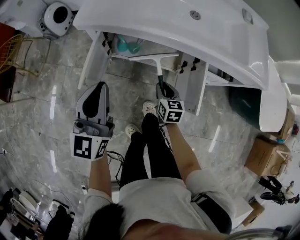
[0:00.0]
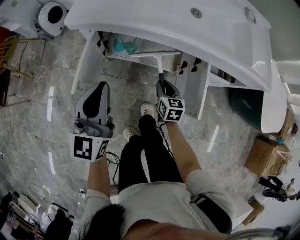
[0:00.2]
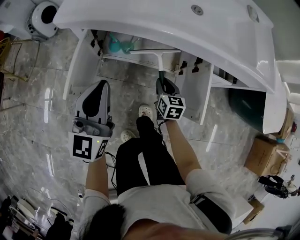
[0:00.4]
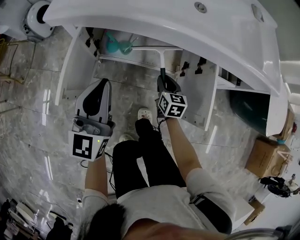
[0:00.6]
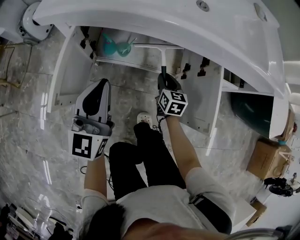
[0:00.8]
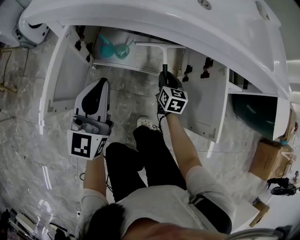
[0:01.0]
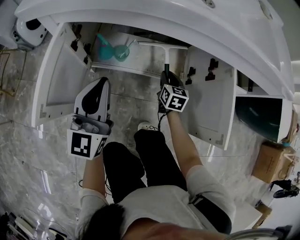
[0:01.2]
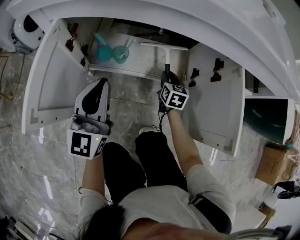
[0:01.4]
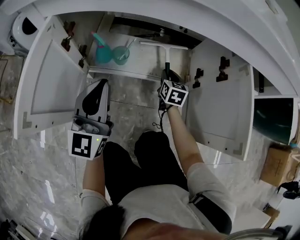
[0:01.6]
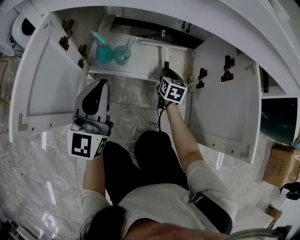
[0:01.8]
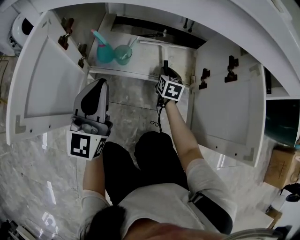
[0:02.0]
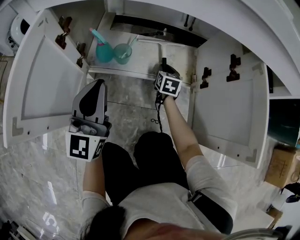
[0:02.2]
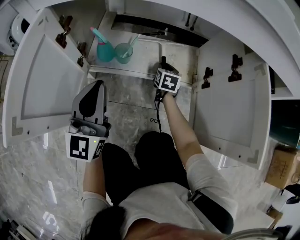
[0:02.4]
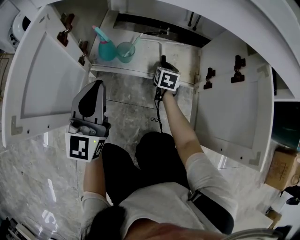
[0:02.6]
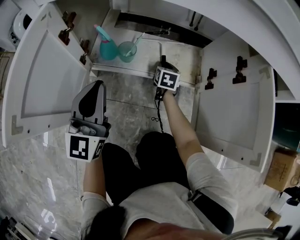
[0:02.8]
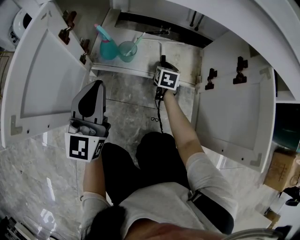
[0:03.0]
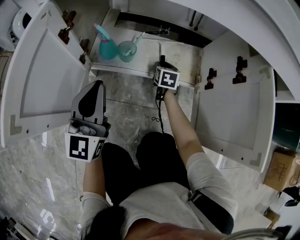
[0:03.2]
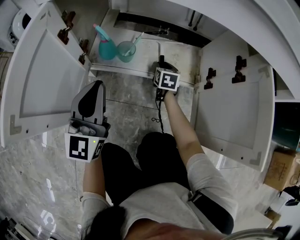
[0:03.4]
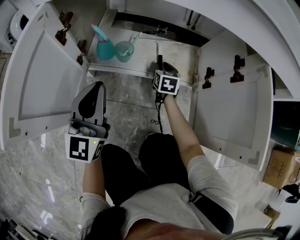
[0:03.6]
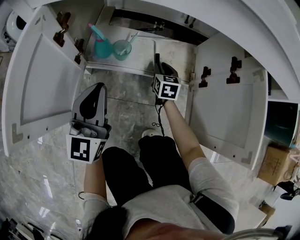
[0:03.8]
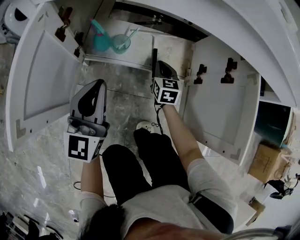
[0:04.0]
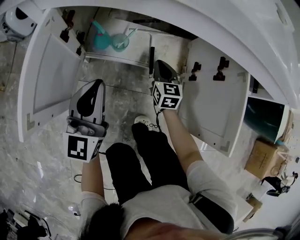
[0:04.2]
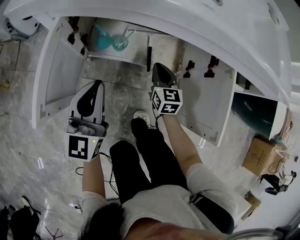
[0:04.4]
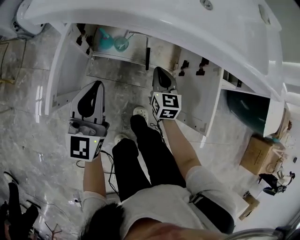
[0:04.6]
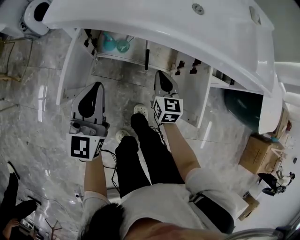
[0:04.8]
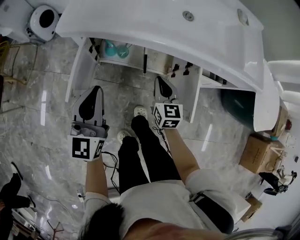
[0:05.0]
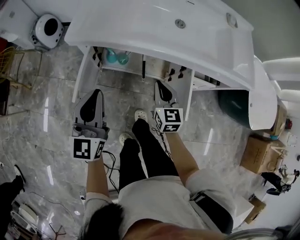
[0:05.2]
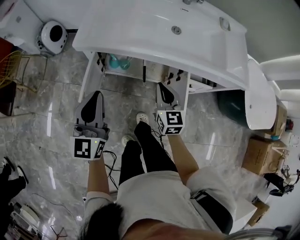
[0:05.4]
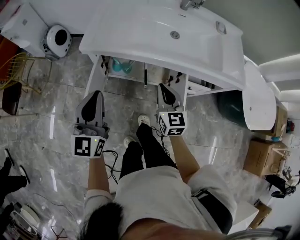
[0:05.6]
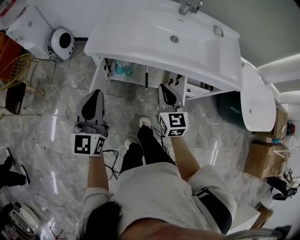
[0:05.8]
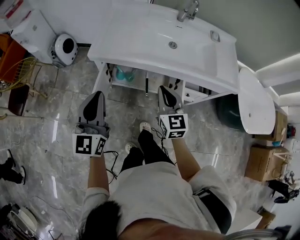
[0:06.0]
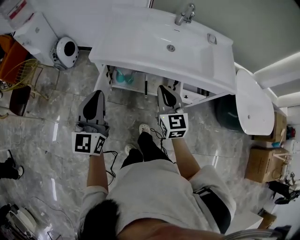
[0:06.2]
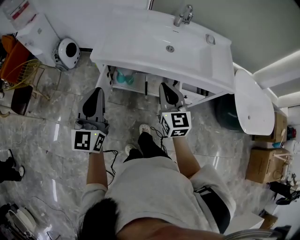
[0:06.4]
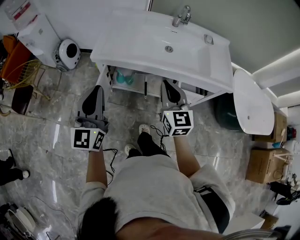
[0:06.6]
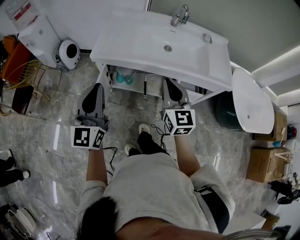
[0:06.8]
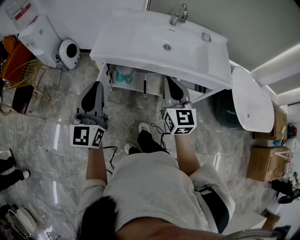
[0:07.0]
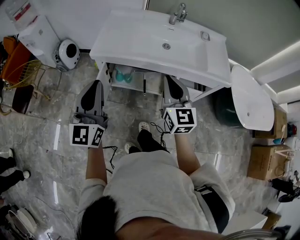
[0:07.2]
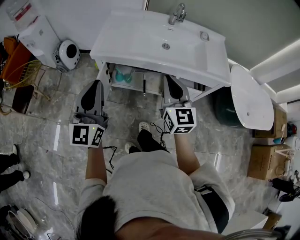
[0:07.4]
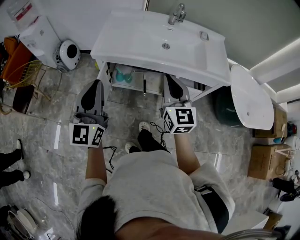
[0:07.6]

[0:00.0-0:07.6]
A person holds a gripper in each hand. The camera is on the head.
0:00.0 to 0:01.6: The left gripper travels downward by roughly 35 cm, while the right gripper is displaced downward and forward by some 35 cm.
0:01.6 to 0:03.0: The right gripper is displaced downward and to the left by some 10 cm, while the left gripper is displaced downward by approximately 5 cm.
0:03.0 to 0:04.6: The right gripper moves upward and backward, approximately 30 cm, changes its angle by roughly 20 degrees, and closes up; the left gripper shifts some 20 cm upward.
0:04.6 to 0:06.0: The grippers both shift upward by approximately 40 cm.
0:06.0 to 0:07.6: The two grippers go about 15 cm upward and backward.

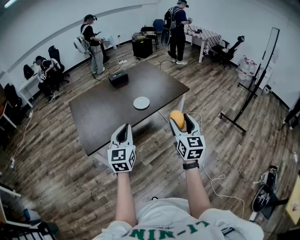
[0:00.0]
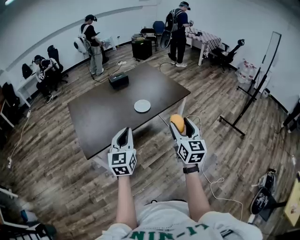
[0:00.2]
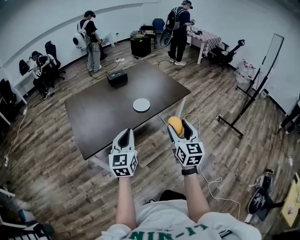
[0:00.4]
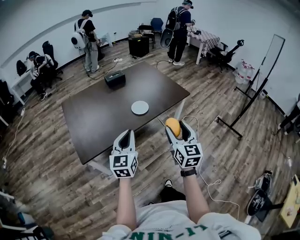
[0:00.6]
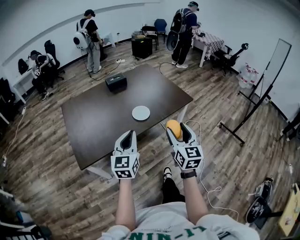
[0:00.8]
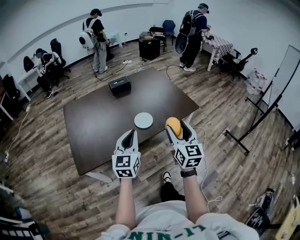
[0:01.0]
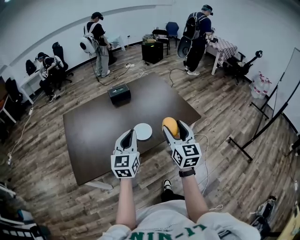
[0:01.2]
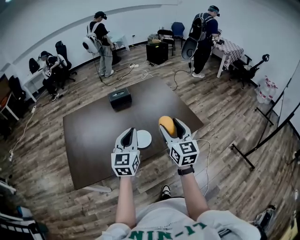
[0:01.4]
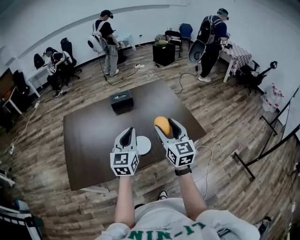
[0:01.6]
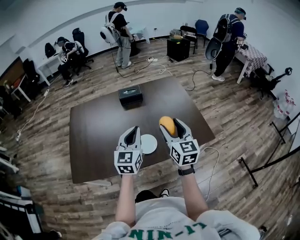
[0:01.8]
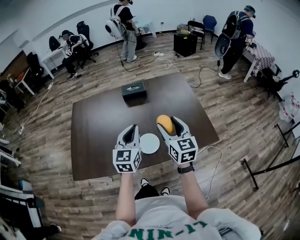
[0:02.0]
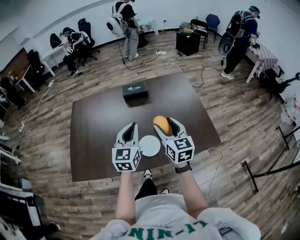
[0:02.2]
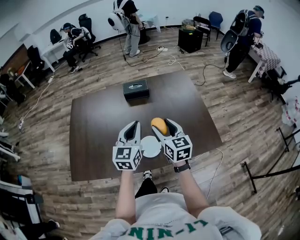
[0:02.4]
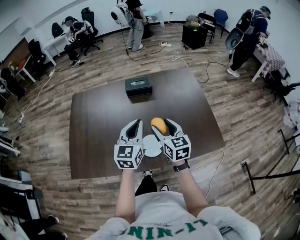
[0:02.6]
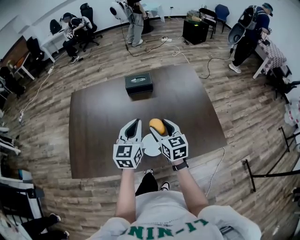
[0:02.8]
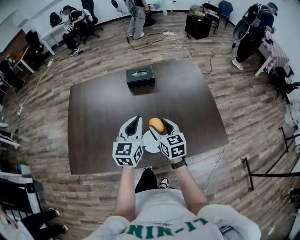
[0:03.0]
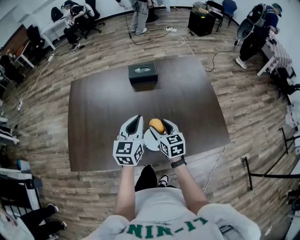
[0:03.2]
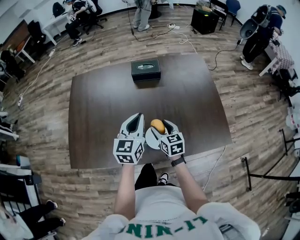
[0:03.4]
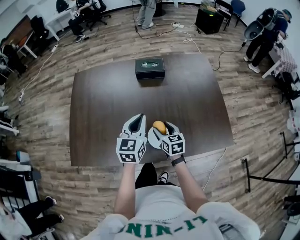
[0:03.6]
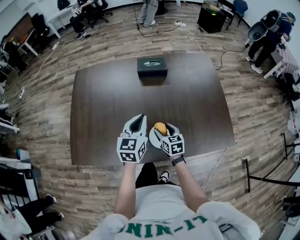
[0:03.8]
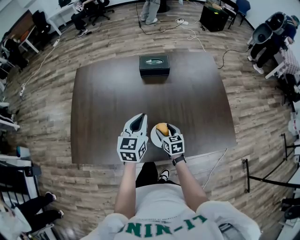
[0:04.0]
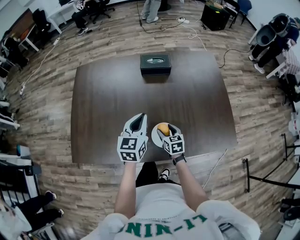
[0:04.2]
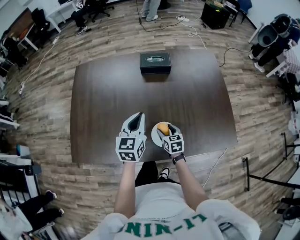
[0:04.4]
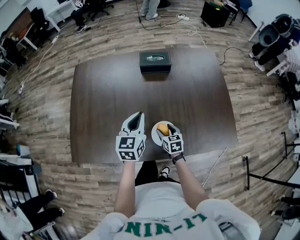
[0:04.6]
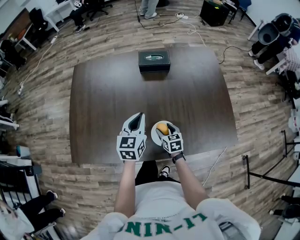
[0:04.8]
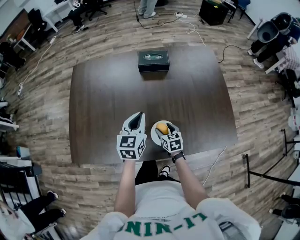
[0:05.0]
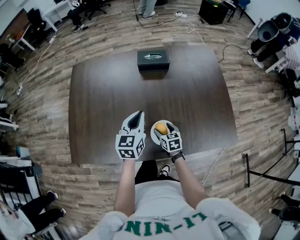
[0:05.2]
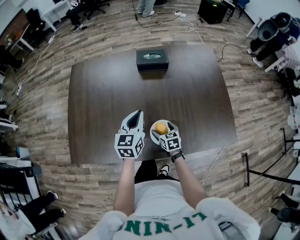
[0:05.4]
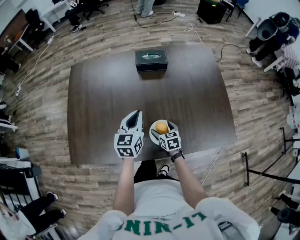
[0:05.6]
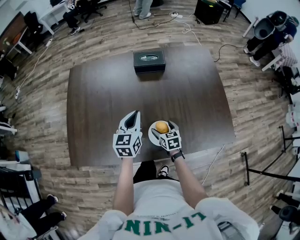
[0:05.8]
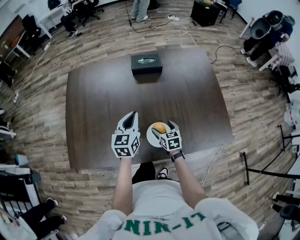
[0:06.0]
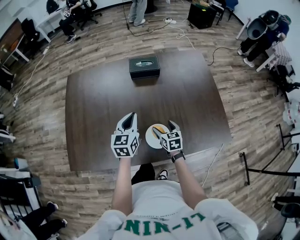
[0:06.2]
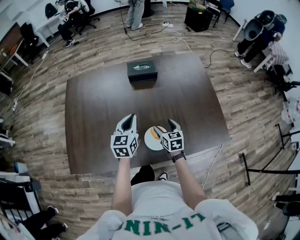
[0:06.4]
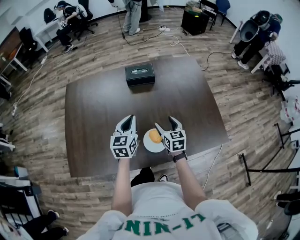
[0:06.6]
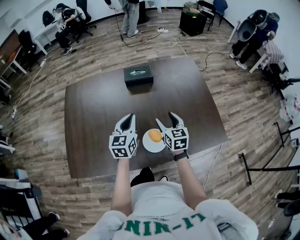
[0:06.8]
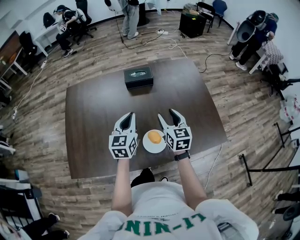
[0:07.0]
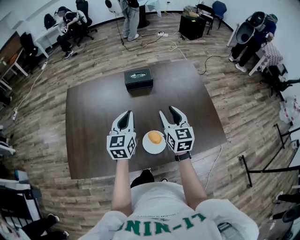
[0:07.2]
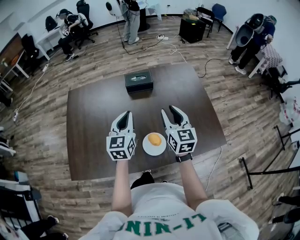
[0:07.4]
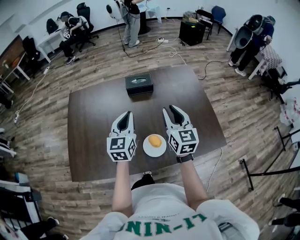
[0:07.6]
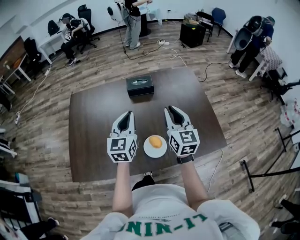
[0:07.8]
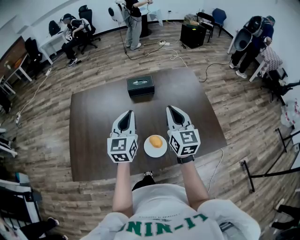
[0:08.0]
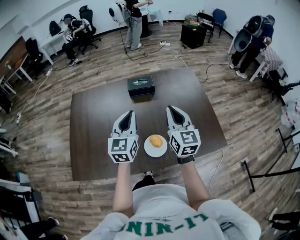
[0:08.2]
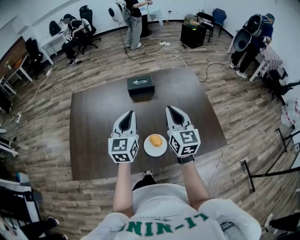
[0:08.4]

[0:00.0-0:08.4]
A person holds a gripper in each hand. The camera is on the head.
0:00.0 to 0:01.4: The pair of grippers is taken forward, some 40 cm.
0:01.4 to 0:02.8: The right gripper shifts about 30 cm forward and downward, and swivels roughly 30 degrees, while the left gripper travels forward by some 20 cm.
0:02.8 to 0:04.2: The left gripper travels downward and to the left by some 10 cm. The right gripper is displaced downward by about 25 cm, and rotates approximately 20 degrees.
0:04.2 to 0:05.6: The right gripper opens.
0:05.6 to 0:07.0: The right gripper moves upward, approximately 25 cm, changes its angle by approximately 30 degrees, and closes its fingers, while the left gripper heads upward, covering some 5 cm.
0:07.0 to 0:08.4: The grippers both shift upward by some 10 cm. The right gripper closes.

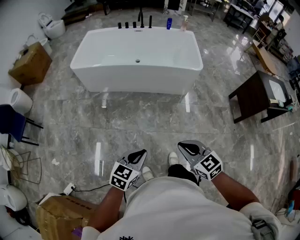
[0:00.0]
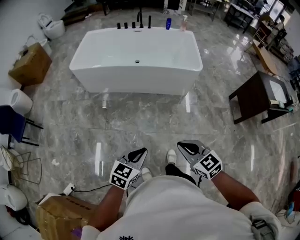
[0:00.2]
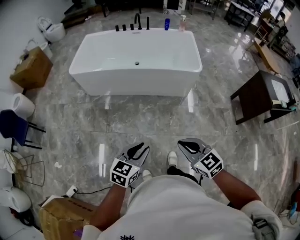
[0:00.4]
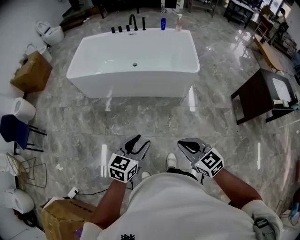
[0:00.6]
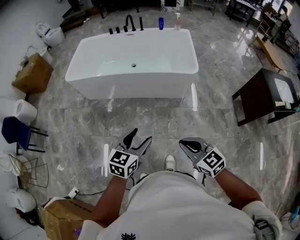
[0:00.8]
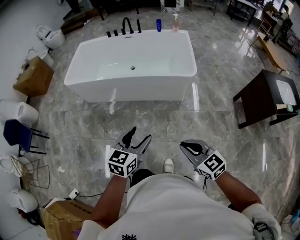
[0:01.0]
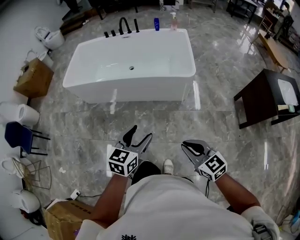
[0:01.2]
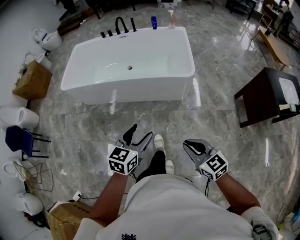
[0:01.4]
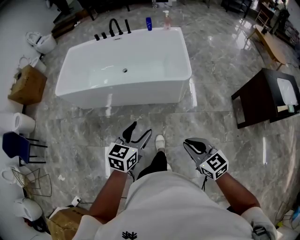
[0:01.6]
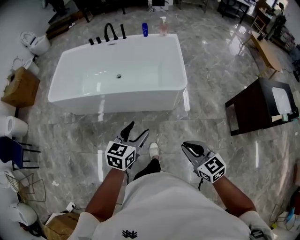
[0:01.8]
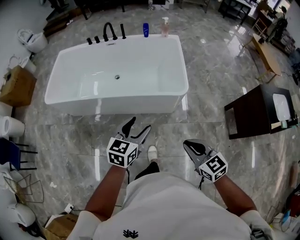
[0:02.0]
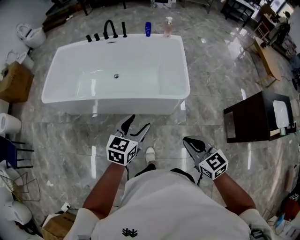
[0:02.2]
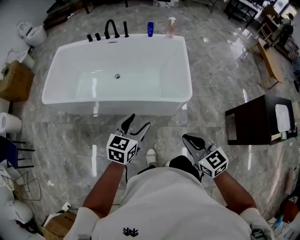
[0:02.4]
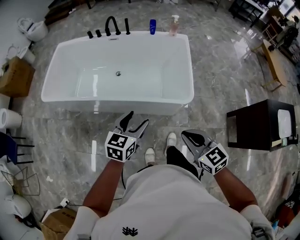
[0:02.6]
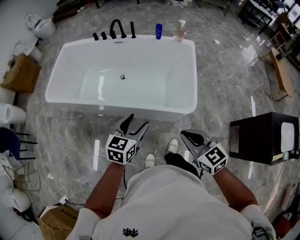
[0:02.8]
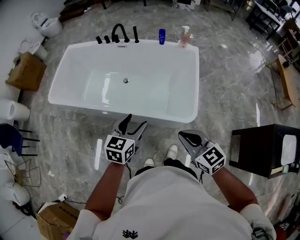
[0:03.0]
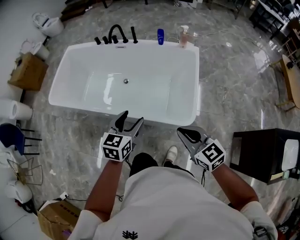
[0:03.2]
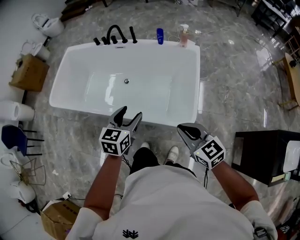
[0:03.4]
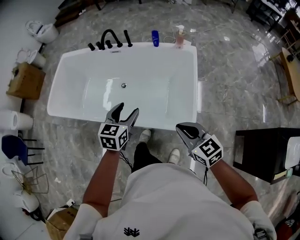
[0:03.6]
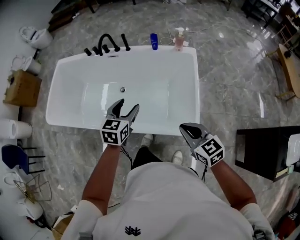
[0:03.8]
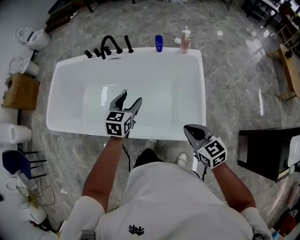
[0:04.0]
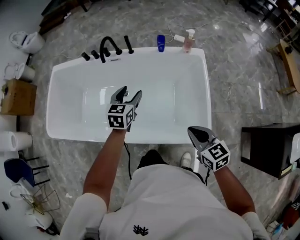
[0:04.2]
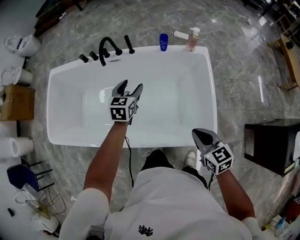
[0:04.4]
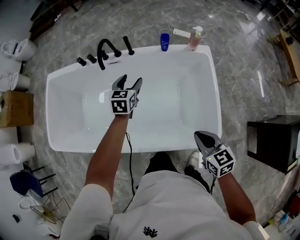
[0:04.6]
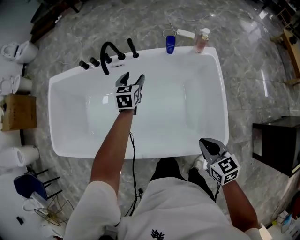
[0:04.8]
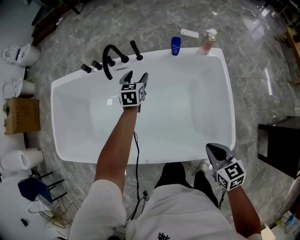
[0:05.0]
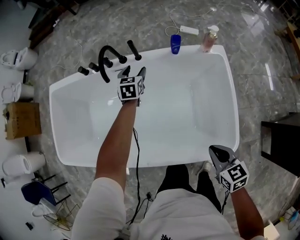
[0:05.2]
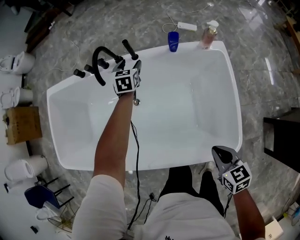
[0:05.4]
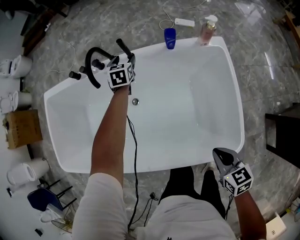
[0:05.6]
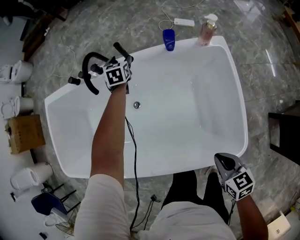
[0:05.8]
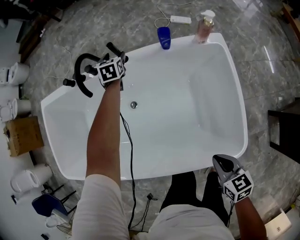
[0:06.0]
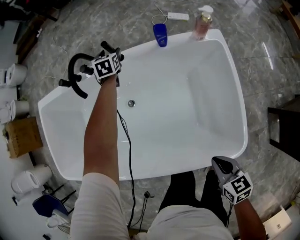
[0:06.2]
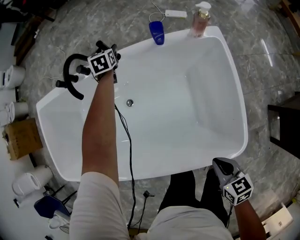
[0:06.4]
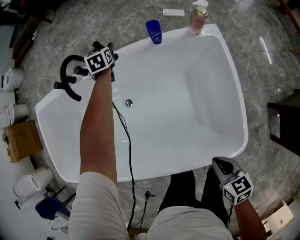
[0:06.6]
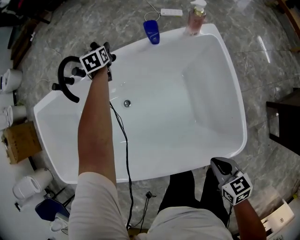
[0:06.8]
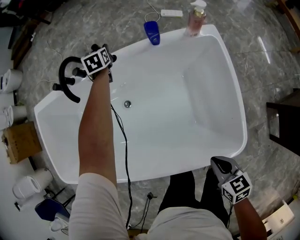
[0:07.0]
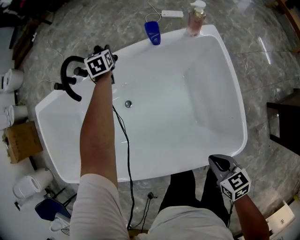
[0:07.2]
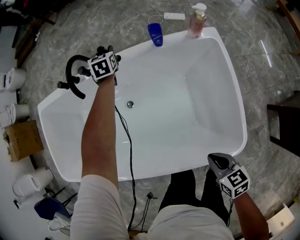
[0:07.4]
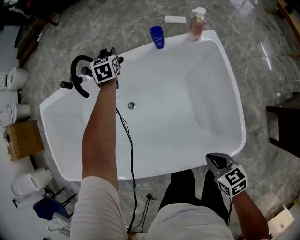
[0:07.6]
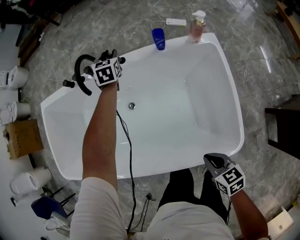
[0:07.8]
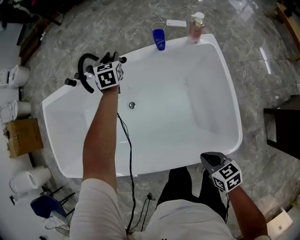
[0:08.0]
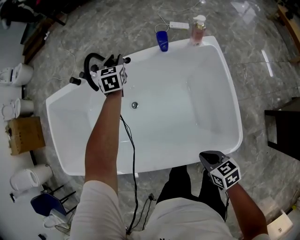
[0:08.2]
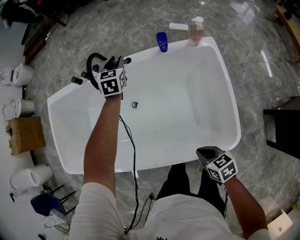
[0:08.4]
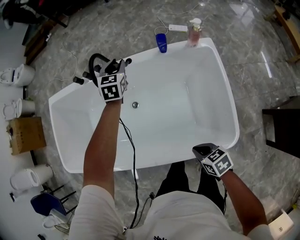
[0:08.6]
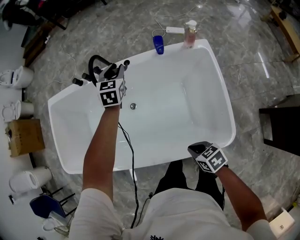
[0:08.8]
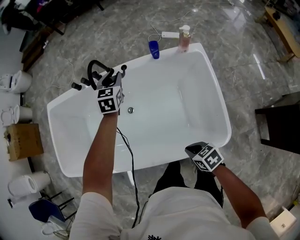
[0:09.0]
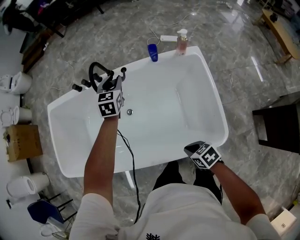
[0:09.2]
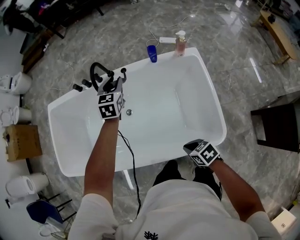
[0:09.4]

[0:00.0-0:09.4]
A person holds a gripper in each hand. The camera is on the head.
0:00.0 to 0:01.6: The left gripper travels forward and to the right by some 40 cm, and opens up, while the right gripper travels to the right and forward by about 35 cm.
0:01.6 to 0:03.2: The pair of grippers is taken forward, about 40 cm.
0:03.2 to 0:04.8: The right gripper travels forward and downward by approximately 30 cm, and turns by roughly 30 degrees. The left gripper travels forward by some 60 cm.
0:04.8 to 0:06.2: The left gripper travels forward and downward by approximately 30 cm. The right gripper goes roughly 10 cm downward.
0:06.2 to 0:07.8: The left gripper is displaced upward by roughly 5 cm, and closes.
0:07.8 to 0:09.4: The left gripper shifts approximately 25 cm backward and upward. Meanwhile the right gripper heads to the left, covering roughly 5 cm.
